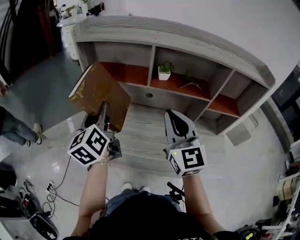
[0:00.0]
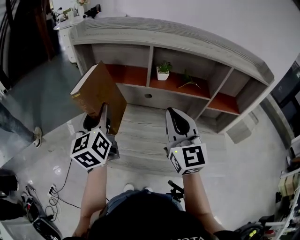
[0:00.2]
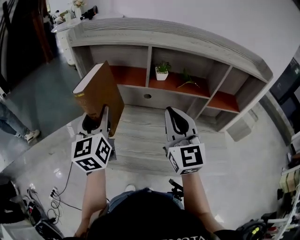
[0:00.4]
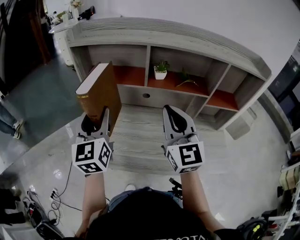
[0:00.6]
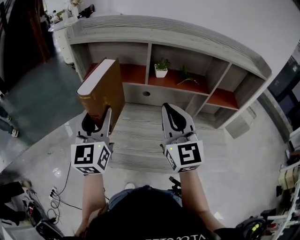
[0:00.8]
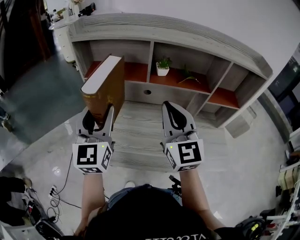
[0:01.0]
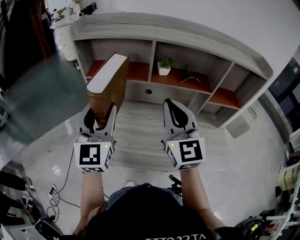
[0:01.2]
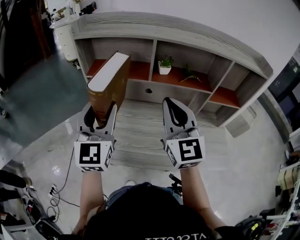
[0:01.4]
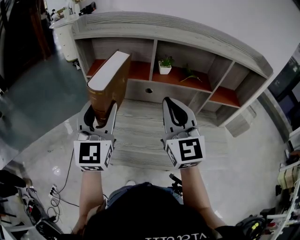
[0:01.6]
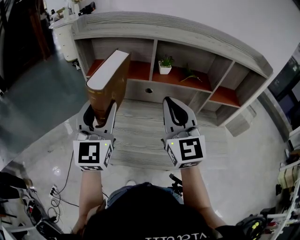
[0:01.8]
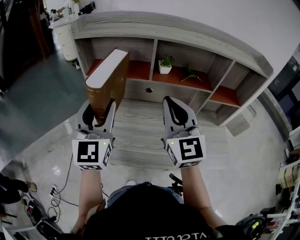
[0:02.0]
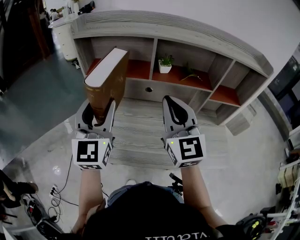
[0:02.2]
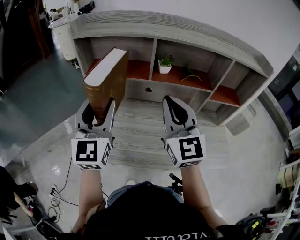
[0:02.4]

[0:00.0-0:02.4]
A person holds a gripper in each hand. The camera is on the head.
0:00.0 to 0:01.2: The left gripper changes place by approximately 5 cm, and turns by about 40 degrees.
0:01.2 to 0:02.4: Both grippers stay put.

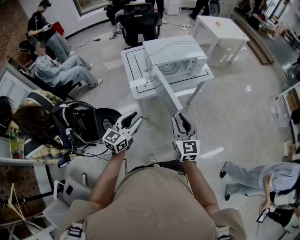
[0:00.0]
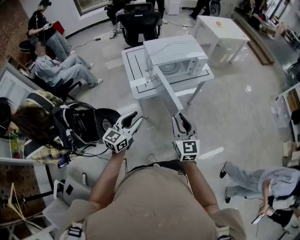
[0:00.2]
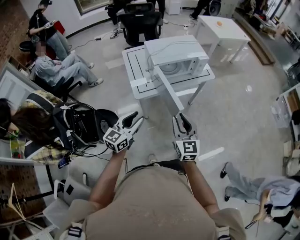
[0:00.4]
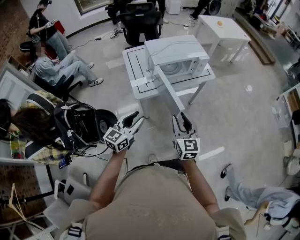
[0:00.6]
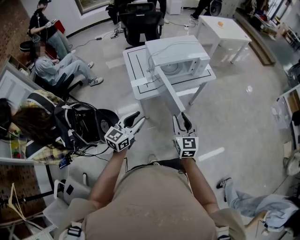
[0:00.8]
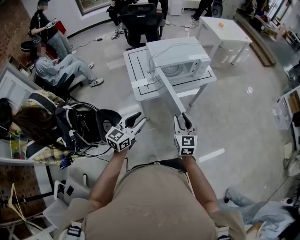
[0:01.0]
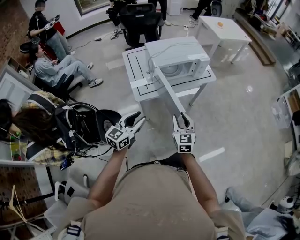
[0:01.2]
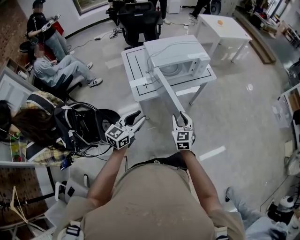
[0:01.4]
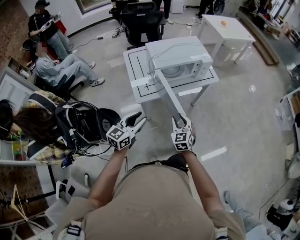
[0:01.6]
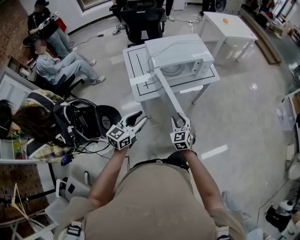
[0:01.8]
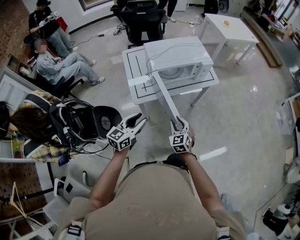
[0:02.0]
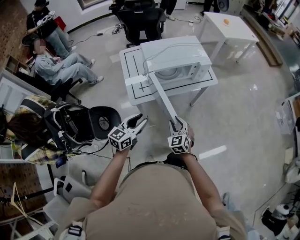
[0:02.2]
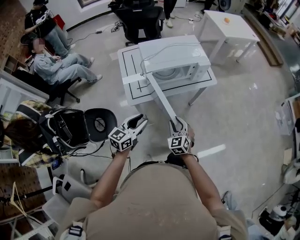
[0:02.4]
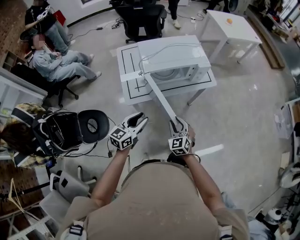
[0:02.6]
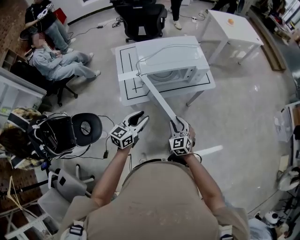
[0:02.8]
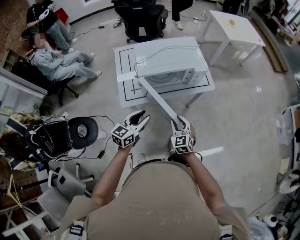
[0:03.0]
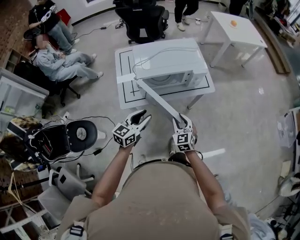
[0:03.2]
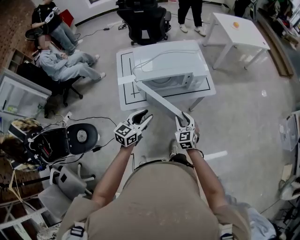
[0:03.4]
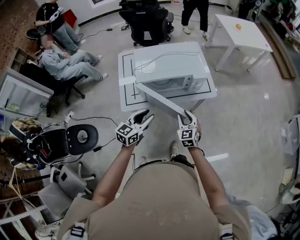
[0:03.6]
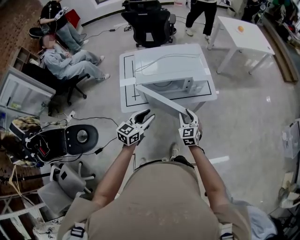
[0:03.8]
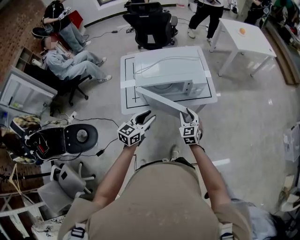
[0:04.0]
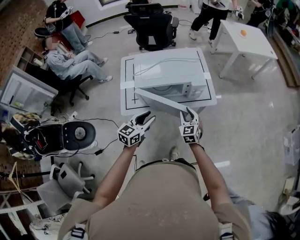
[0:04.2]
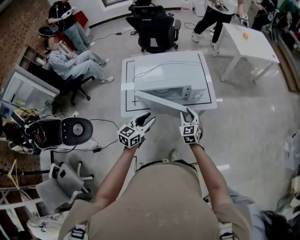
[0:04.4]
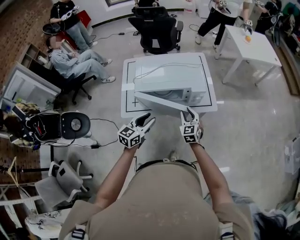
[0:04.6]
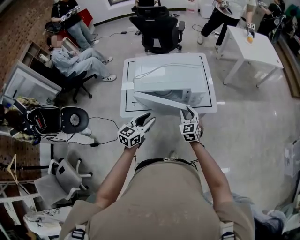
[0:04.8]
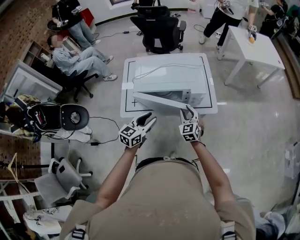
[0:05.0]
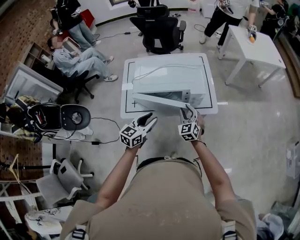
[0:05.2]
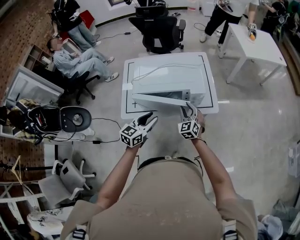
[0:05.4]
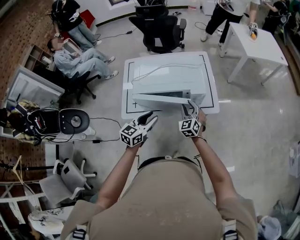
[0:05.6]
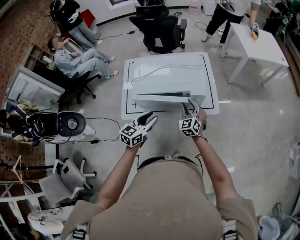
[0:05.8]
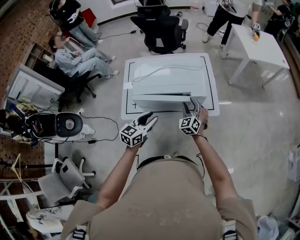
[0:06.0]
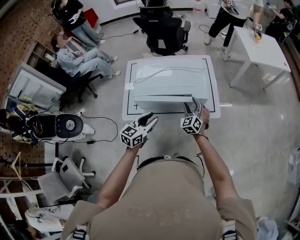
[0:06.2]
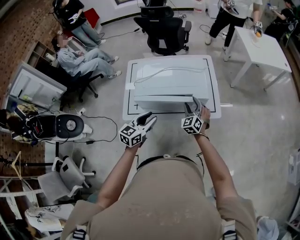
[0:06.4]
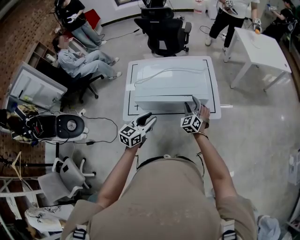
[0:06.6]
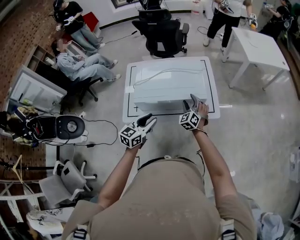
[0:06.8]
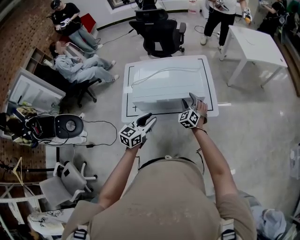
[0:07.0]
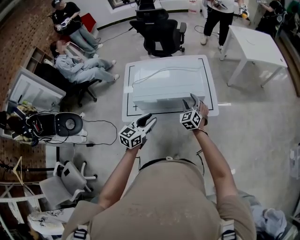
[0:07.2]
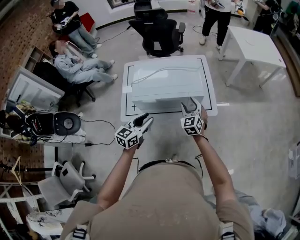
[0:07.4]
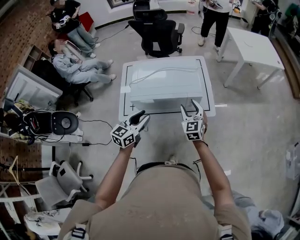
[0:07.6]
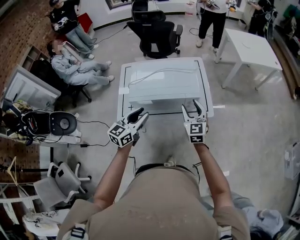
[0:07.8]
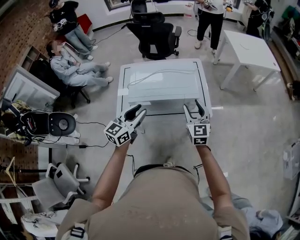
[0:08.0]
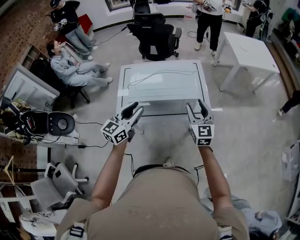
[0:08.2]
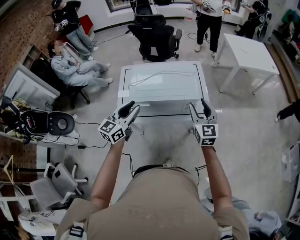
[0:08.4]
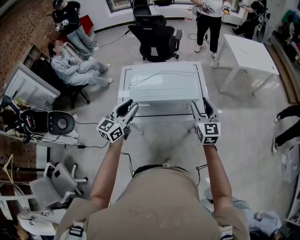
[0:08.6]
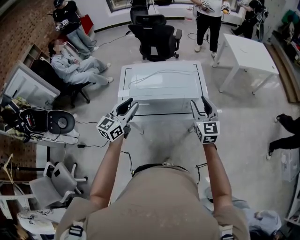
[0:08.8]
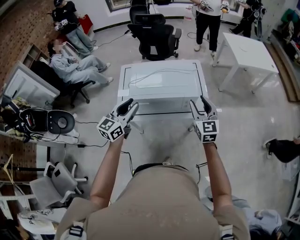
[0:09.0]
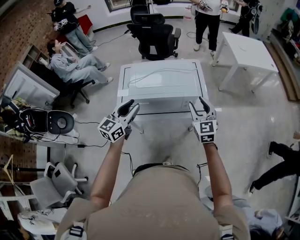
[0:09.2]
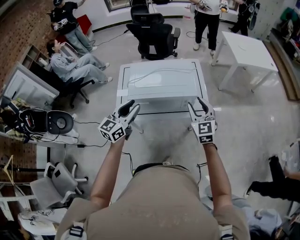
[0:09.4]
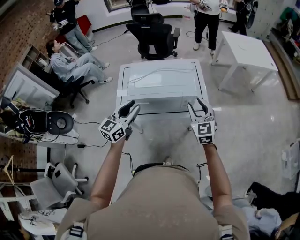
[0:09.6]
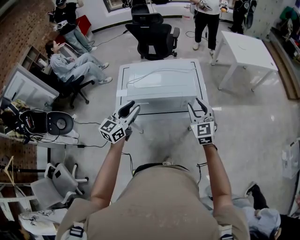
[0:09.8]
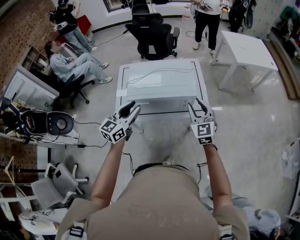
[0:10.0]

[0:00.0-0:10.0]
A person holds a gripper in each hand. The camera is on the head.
0:00.0 to 0:01.4: The right gripper heads downward and forward, covering about 15 cm.
0:01.4 to 0:02.8: The right gripper moves forward, to the right and downward, roughly 15 cm, while the left gripper shifts some 15 cm forward and to the right.
0:02.8 to 0:04.2: The grippers both shift forward and to the right by some 15 cm.
0:04.2 to 0:05.8: The right gripper moves forward, roughly 10 cm. The left gripper is displaced forward by approximately 5 cm.
0:05.8 to 0:07.2: The right gripper opens its fingers.
0:07.2 to 0:08.6: The right gripper moves upward, to the right and backward, about 20 cm, and turns by about 30 degrees. Meanwhile the left gripper goes approximately 15 cm upward and to the left.
0:08.6 to 0:10.0: There are only small adjustments of the grippers.

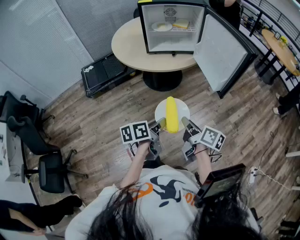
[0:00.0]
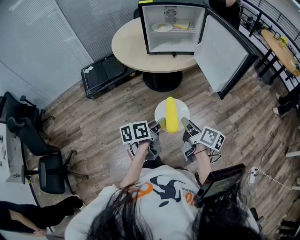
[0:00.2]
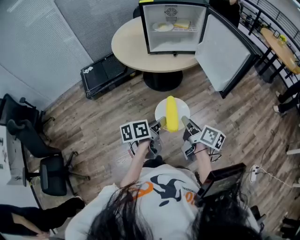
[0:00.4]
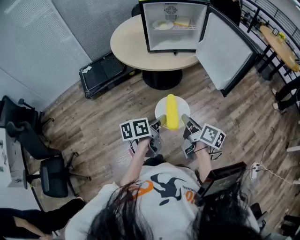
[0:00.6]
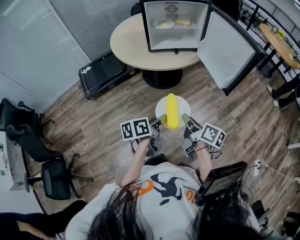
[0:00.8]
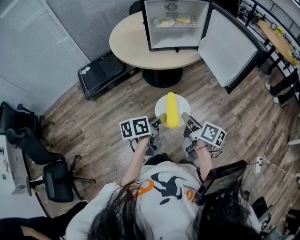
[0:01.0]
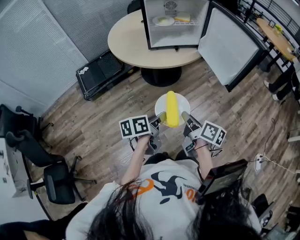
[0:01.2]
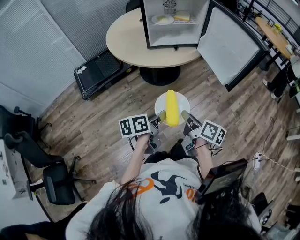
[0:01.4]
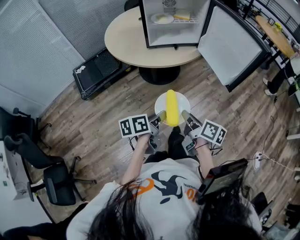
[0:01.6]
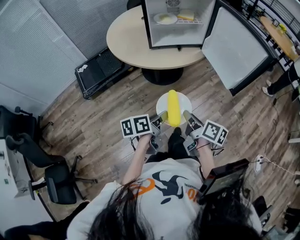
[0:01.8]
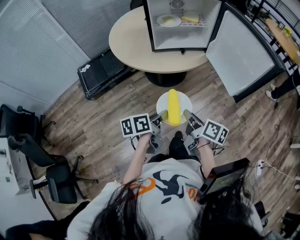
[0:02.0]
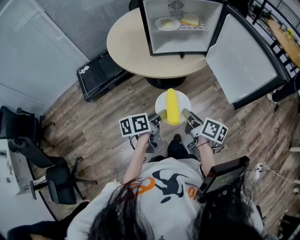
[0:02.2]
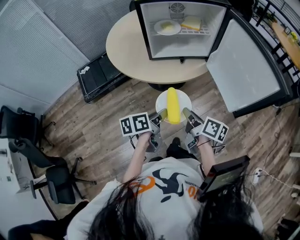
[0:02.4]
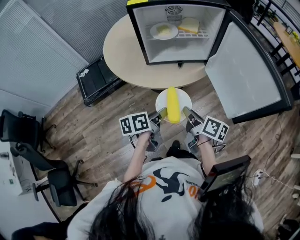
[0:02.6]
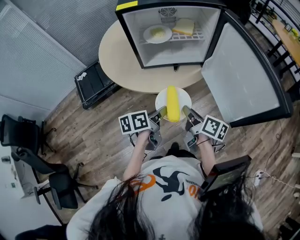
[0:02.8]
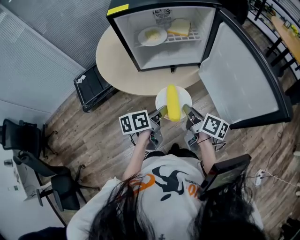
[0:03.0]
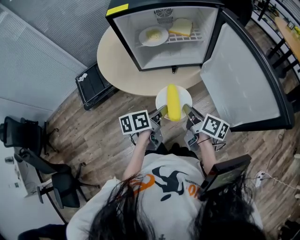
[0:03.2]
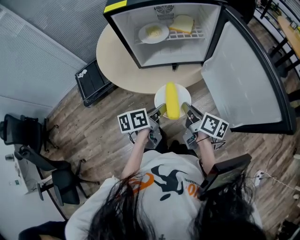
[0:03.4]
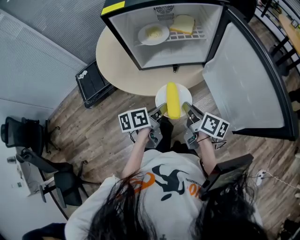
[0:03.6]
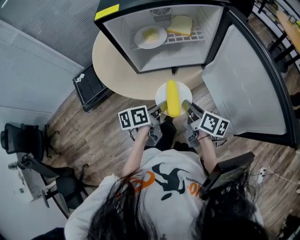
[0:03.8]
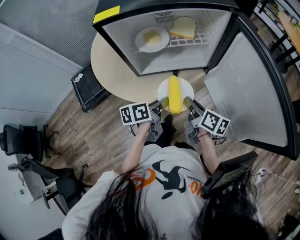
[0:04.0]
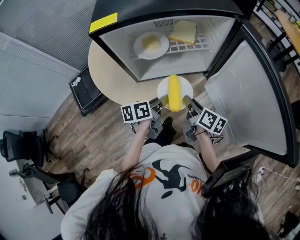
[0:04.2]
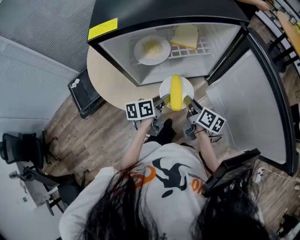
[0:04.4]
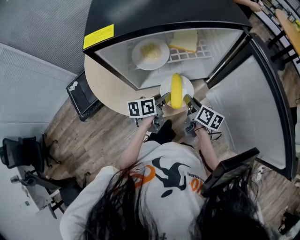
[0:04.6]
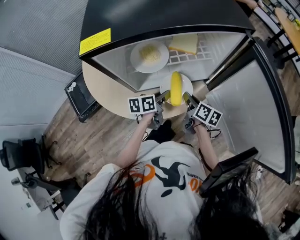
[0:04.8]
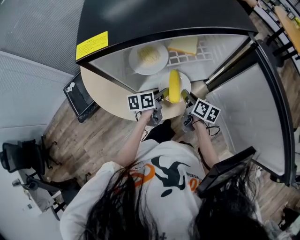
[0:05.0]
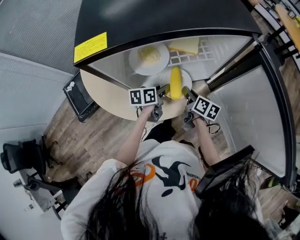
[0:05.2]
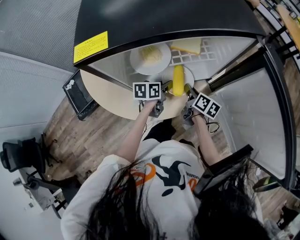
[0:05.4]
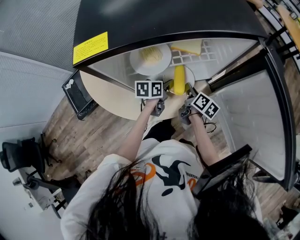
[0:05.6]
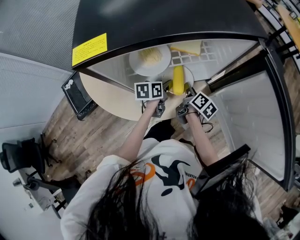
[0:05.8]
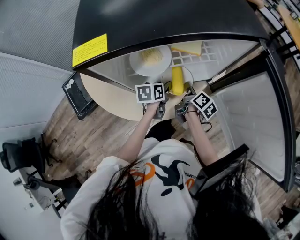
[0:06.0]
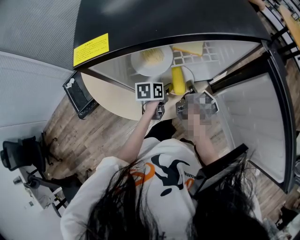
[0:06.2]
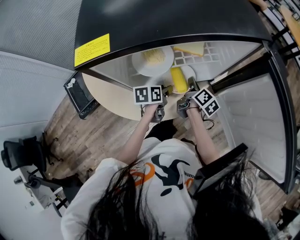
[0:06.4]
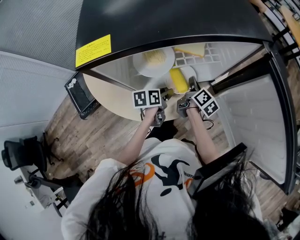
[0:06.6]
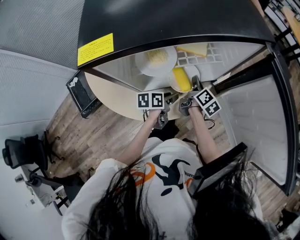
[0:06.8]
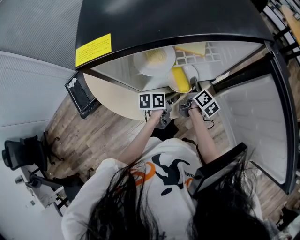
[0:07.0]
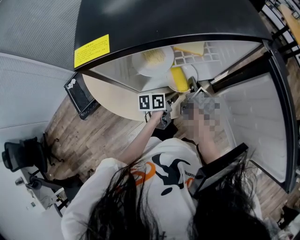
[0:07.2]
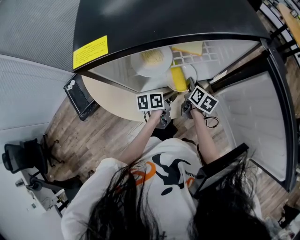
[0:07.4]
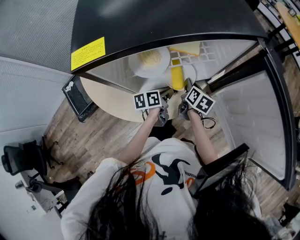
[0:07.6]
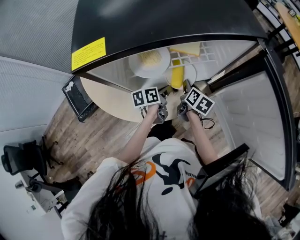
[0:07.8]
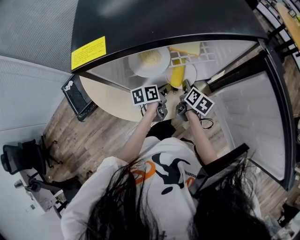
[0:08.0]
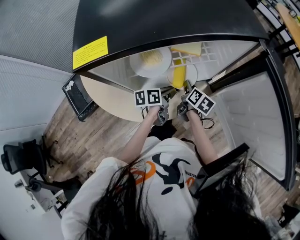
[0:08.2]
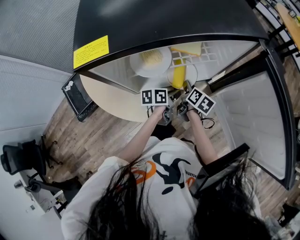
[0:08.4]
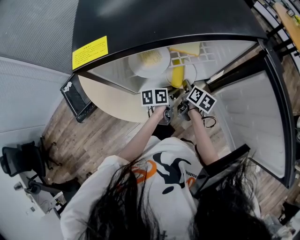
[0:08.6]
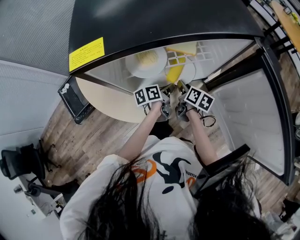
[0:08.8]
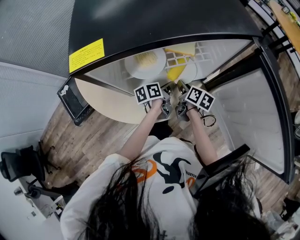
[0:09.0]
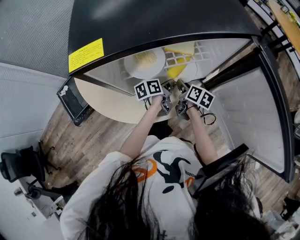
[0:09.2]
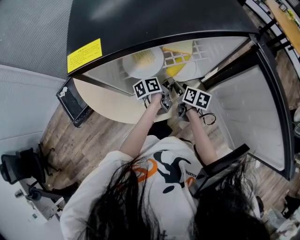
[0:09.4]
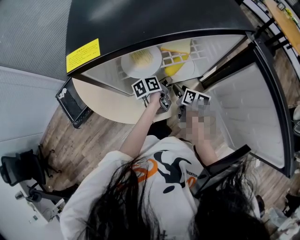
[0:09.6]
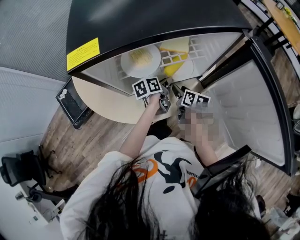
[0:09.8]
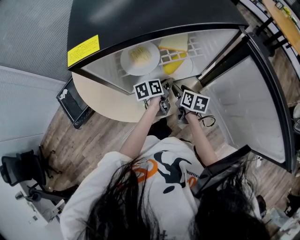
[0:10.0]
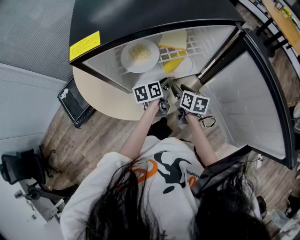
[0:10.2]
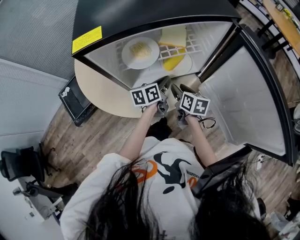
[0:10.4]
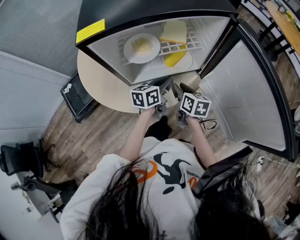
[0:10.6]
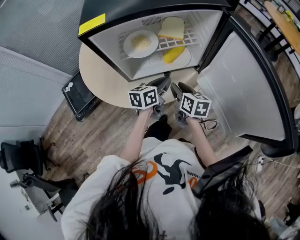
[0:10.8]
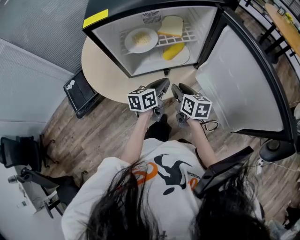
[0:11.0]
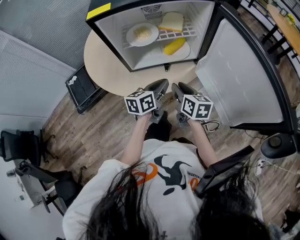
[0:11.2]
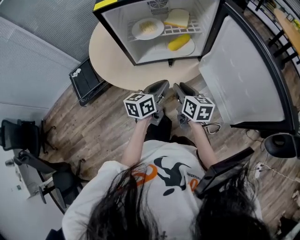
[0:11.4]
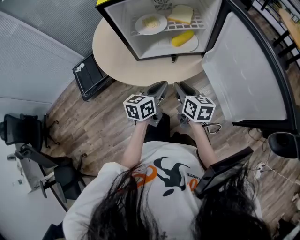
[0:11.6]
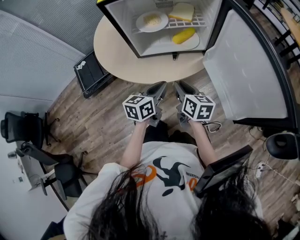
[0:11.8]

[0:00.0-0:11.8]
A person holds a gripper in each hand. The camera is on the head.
0:00.0 to 0:01.4: The grippers both shift to the left by about 10 cm.
0:01.4 to 0:03.0: The grippers both shift forward by approximately 30 cm.
0:03.0 to 0:04.4: The right gripper travels forward and downward by some 20 cm, while the left gripper moves forward, some 20 cm.
0:04.4 to 0:06.0: The two grippers go about 15 cm forward and downward. The right gripper rotates approximately 20 degrees.
0:06.0 to 0:07.4: The right gripper turns by some 30 degrees, while the left gripper moves roughly 5 cm, rotates about 20 degrees, and closes up.
0:07.4 to 0:08.8: There are only small adjustments of the grippers.
0:08.8 to 0:10.4: The right gripper heads backward, covering some 5 cm. Meanwhile the left gripper goes approximately 5 cm upward, and swivels some 20 degrees.
0:10.4 to 0:11.8: The right gripper goes about 20 cm backward and upward; the left gripper travels backward by roughly 20 cm.
